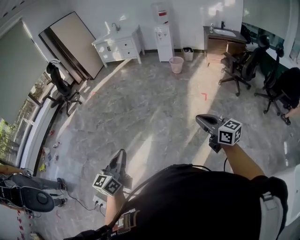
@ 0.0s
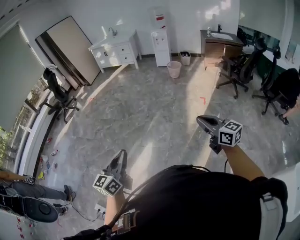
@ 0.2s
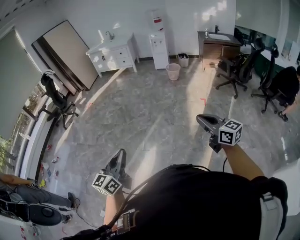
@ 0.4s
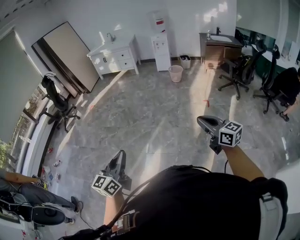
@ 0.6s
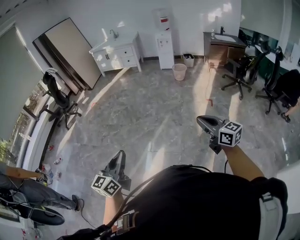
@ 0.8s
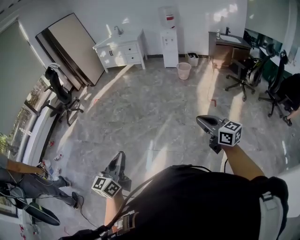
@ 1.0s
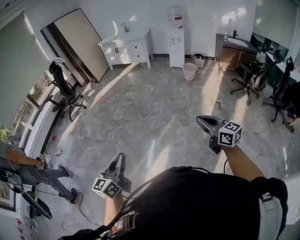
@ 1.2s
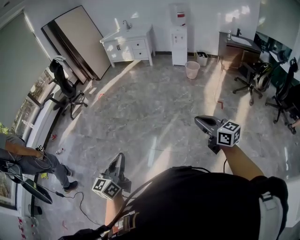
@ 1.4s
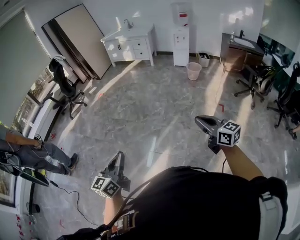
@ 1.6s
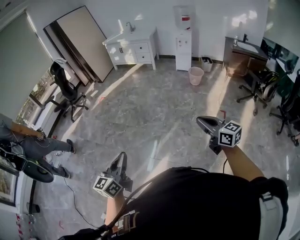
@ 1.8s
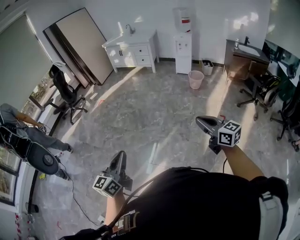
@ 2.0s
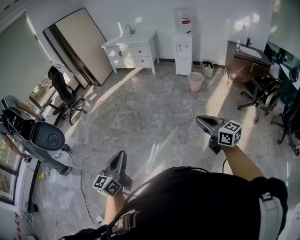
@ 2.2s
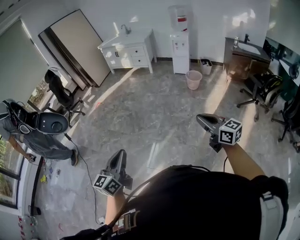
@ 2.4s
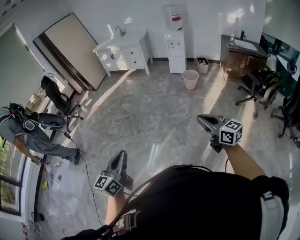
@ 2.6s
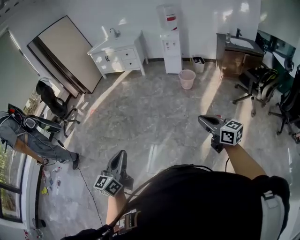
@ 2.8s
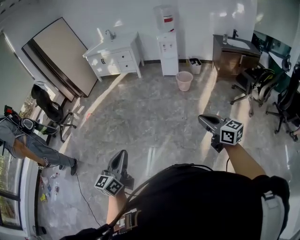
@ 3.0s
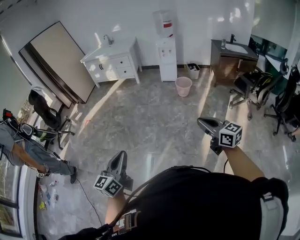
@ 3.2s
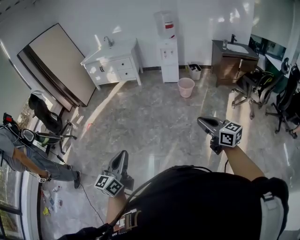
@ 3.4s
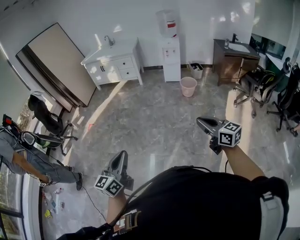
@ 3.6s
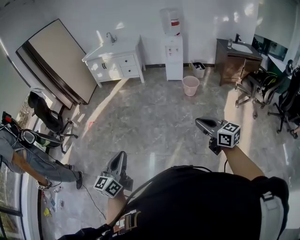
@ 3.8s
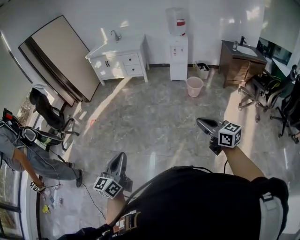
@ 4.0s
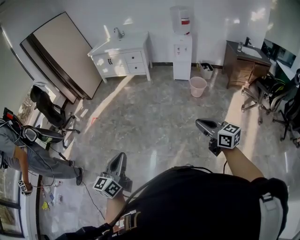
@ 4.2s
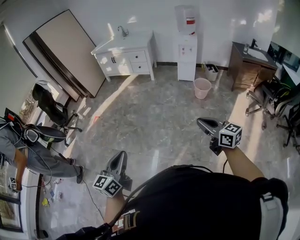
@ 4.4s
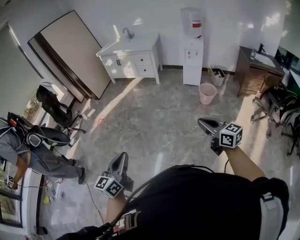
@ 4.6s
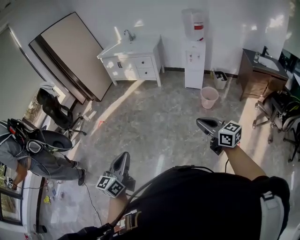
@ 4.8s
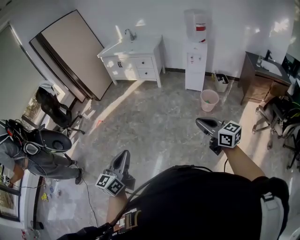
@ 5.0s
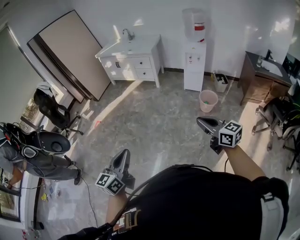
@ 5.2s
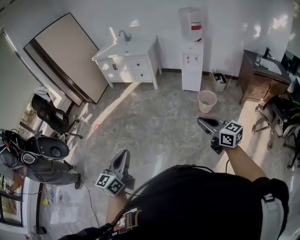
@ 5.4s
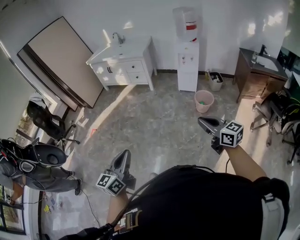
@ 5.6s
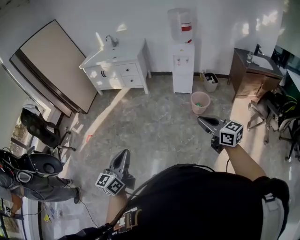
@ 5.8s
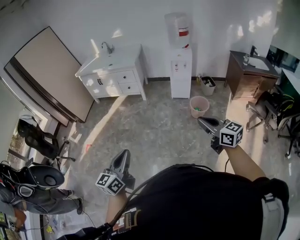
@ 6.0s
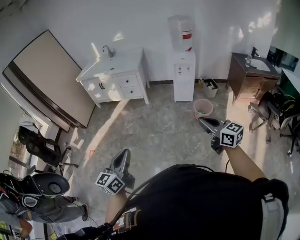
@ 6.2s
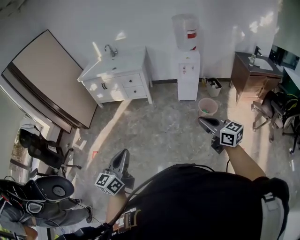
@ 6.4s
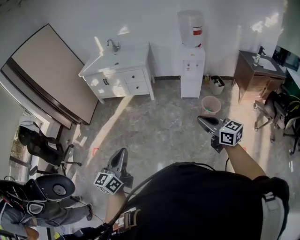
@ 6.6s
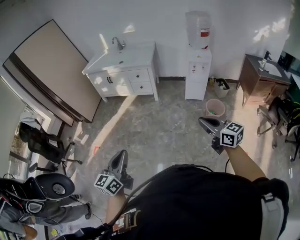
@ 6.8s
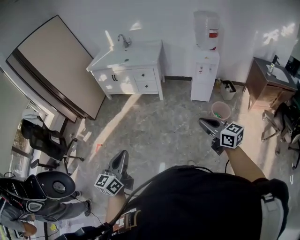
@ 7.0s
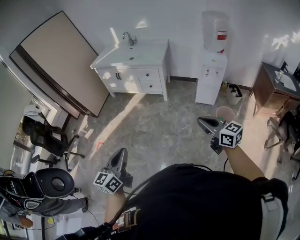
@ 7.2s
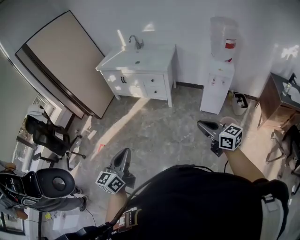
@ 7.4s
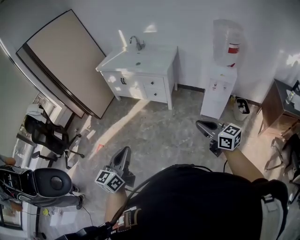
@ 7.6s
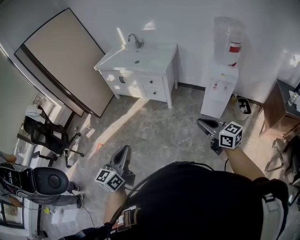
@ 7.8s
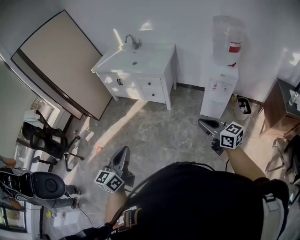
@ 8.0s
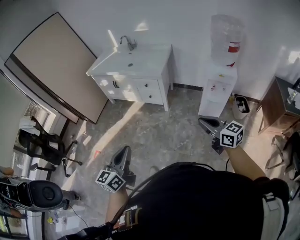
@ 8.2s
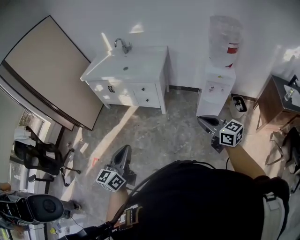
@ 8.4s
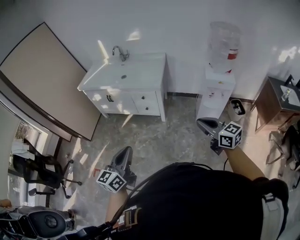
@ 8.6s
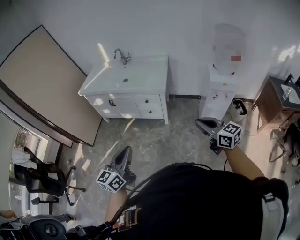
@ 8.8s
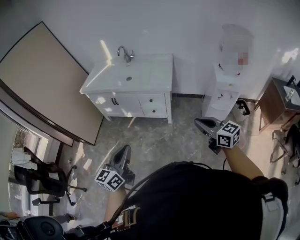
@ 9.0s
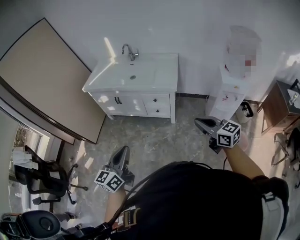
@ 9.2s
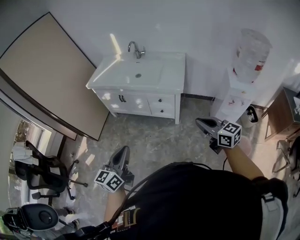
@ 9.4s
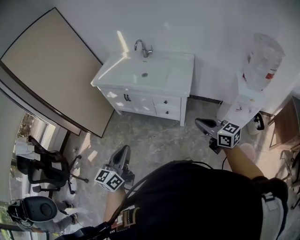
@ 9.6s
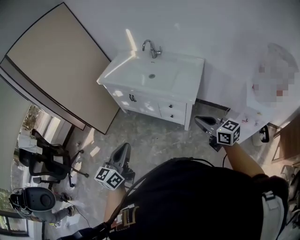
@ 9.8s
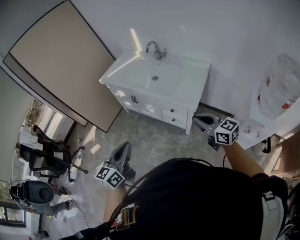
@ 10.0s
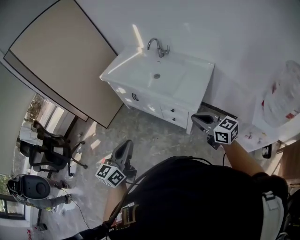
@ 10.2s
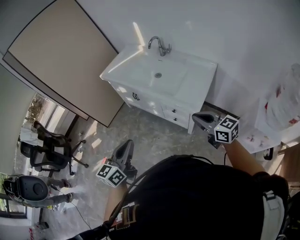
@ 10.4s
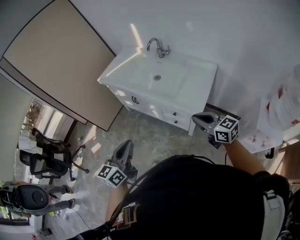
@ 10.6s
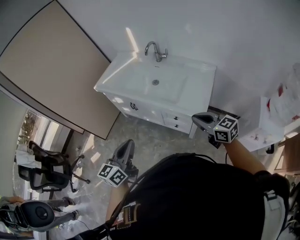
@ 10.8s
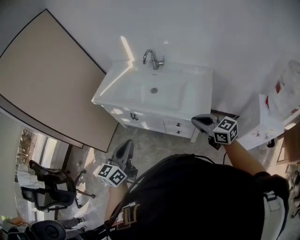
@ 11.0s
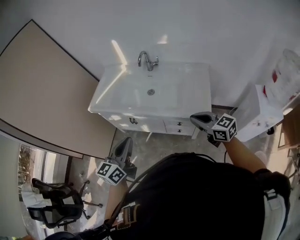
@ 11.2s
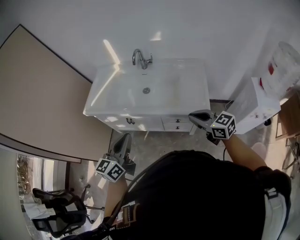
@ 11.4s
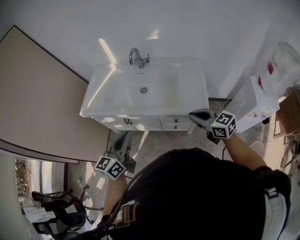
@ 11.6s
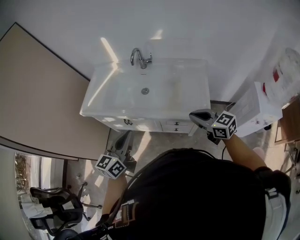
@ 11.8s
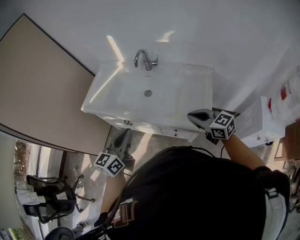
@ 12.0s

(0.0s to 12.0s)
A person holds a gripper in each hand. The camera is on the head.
0.0s - 1.6s: The grippers both shift forward and to the left by some 35 cm.
1.6s - 3.0s: Both grippers travel together forward and to the right, roughly 35 cm.
3.0s - 4.4s: The grippers both shift forward and to the left by approximately 30 cm.
4.4s - 6.0s: Both grippers move forward and to the right, some 40 cm.
6.0s - 7.6s: Both grippers travel together forward, some 40 cm.
7.6s - 9.0s: Both grippers move forward, about 35 cm.
9.0s - 10.4s: The right gripper travels forward by about 40 cm, and turns by about 30 degrees. The left gripper travels forward and to the right by approximately 30 cm, and changes its angle by about 20 degrees.
10.4s - 12.0s: Both grippers move forward, about 30 cm.

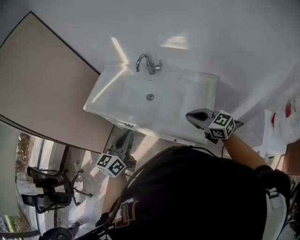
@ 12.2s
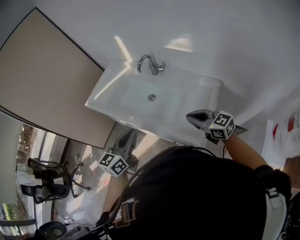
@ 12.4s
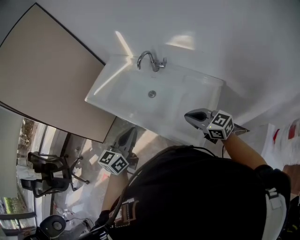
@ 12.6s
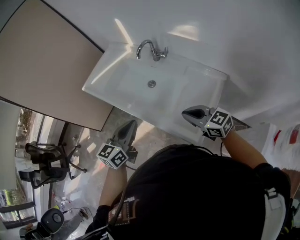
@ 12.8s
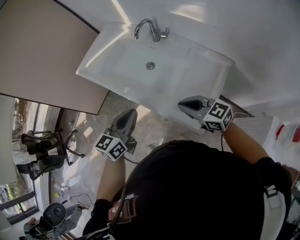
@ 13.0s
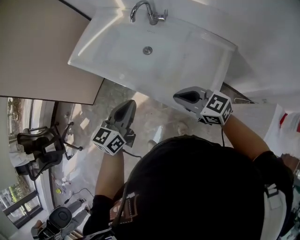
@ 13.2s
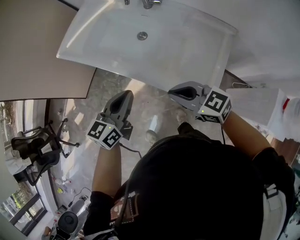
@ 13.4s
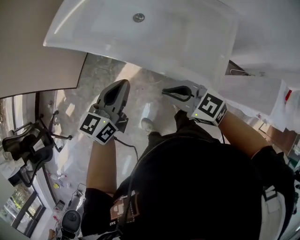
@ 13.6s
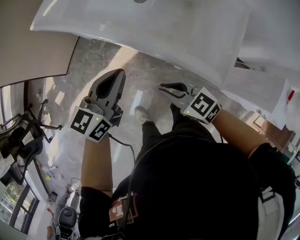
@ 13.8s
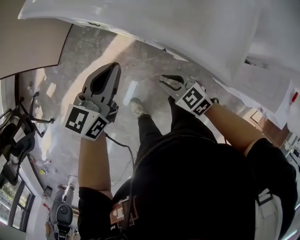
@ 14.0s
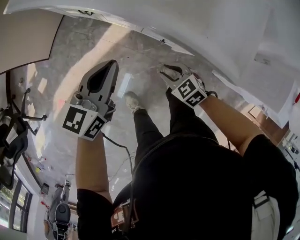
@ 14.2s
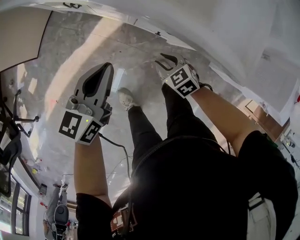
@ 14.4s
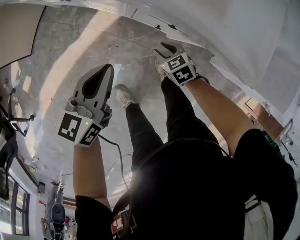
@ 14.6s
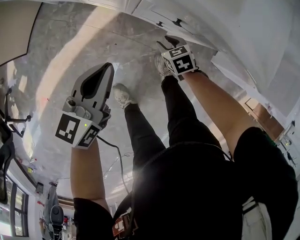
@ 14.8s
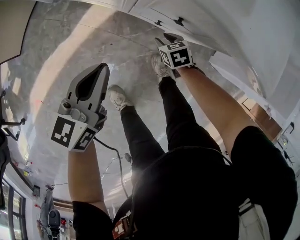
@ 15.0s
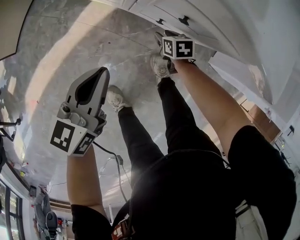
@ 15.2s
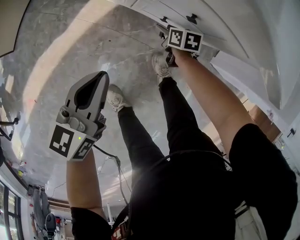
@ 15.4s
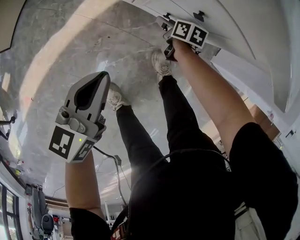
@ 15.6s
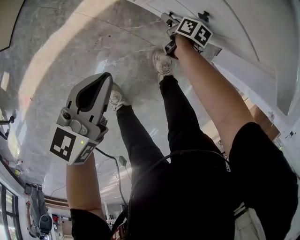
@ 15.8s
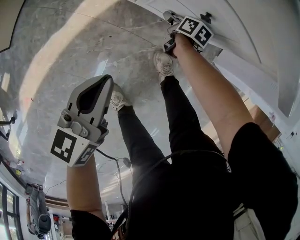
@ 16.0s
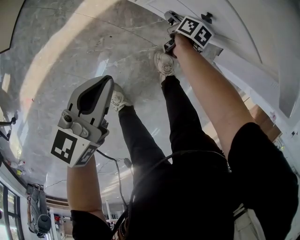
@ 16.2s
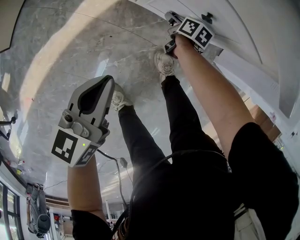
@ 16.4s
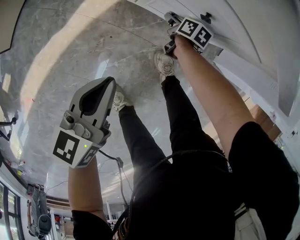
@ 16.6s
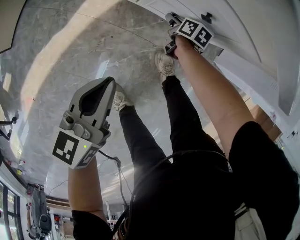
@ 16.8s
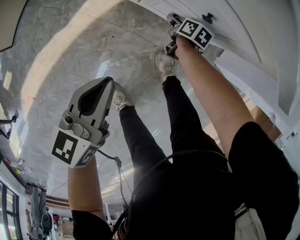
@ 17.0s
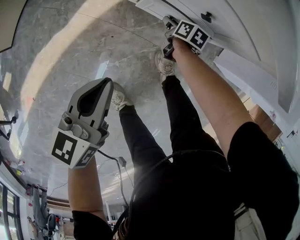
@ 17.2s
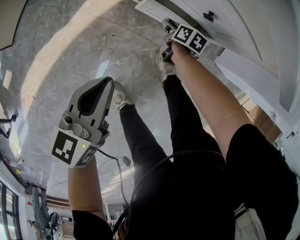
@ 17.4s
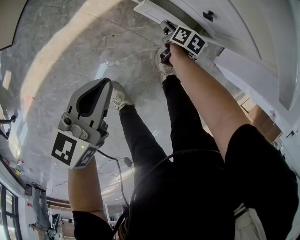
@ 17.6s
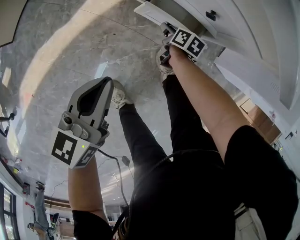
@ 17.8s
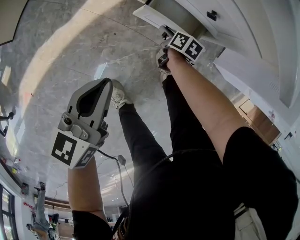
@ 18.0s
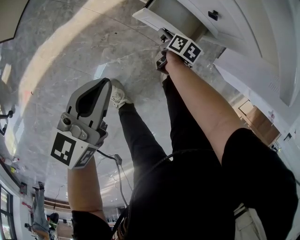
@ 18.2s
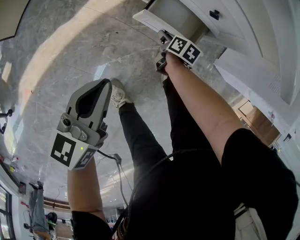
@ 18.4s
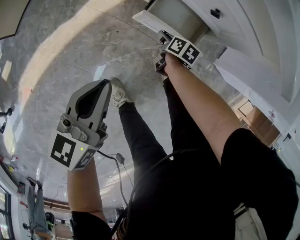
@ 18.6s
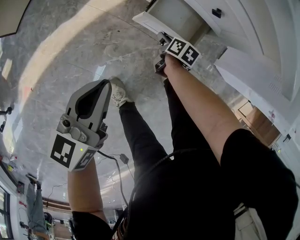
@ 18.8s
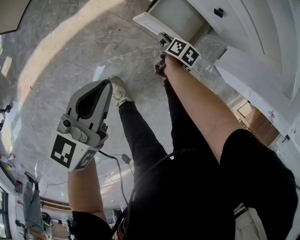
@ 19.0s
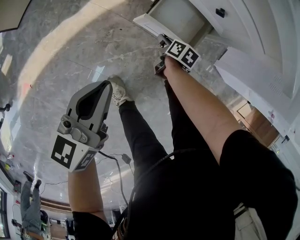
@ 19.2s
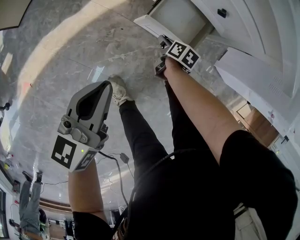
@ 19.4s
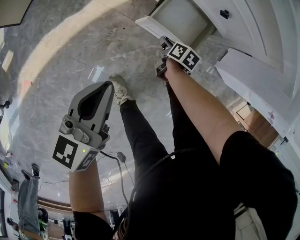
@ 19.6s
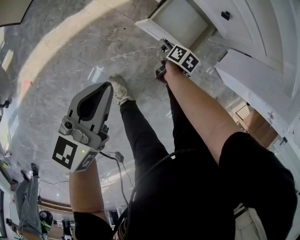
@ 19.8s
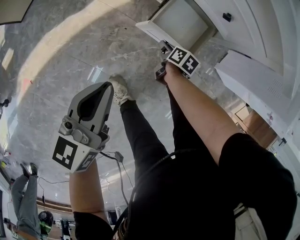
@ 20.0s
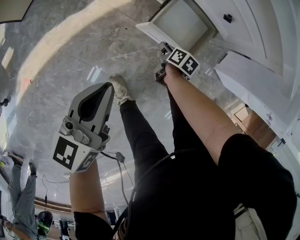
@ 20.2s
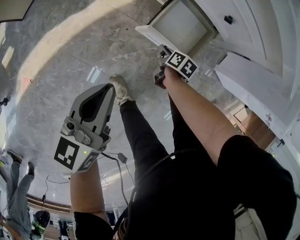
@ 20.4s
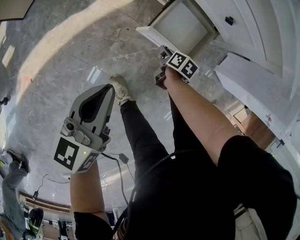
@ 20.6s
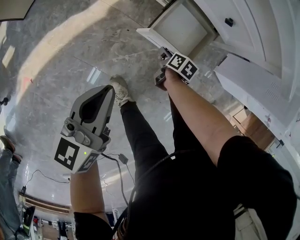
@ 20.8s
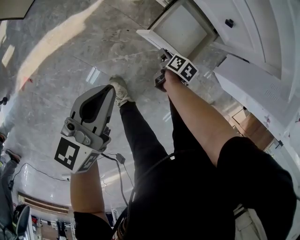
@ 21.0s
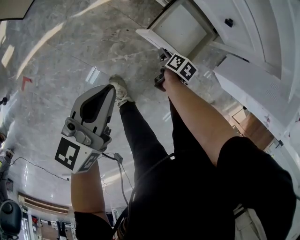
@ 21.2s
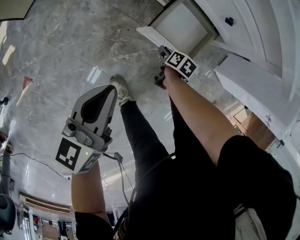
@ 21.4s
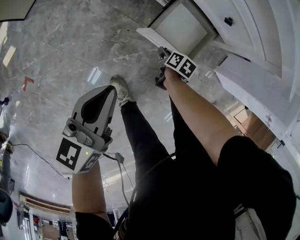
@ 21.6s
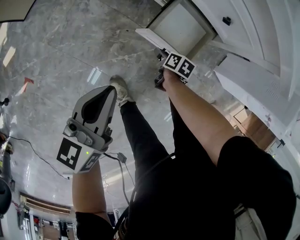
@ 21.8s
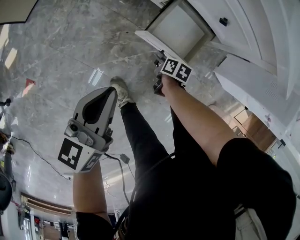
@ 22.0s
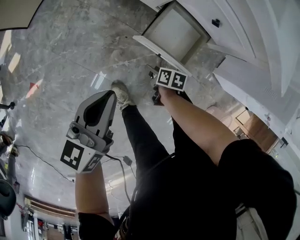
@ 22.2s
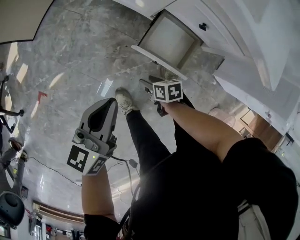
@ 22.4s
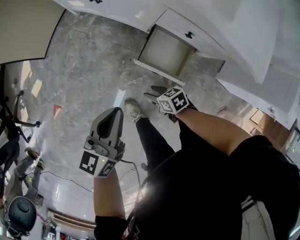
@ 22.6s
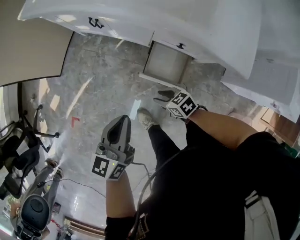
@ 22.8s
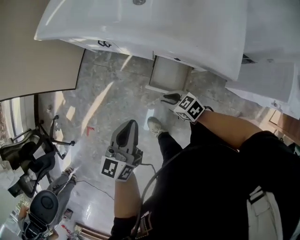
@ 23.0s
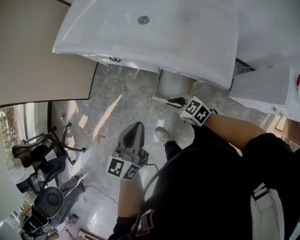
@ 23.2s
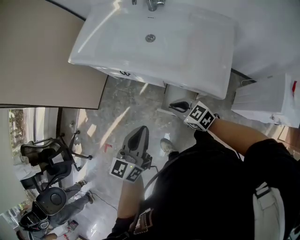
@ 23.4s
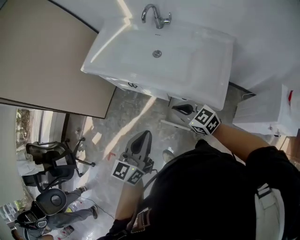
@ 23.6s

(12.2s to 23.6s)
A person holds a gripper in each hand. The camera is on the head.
12.2s - 13.6s: The left gripper shifts approximately 15 cm downward. Meanwhile the right gripper goes some 25 cm downward and to the left.
13.6s - 15.0s: The left gripper moves downward, some 35 cm, while the right gripper travels downward by approximately 60 cm, angles its fingers downward, by approximately 40 degrees, and opens.
15.0s - 16.4s: The left gripper travels downward by some 5 cm, while the right gripper goes roughly 10 cm downward and forward, and twists about 50 degrees clockwise, seen from behind.
16.4s - 17.8s: The right gripper goes about 5 cm backward.
17.8s - 19.4s: Both grippers travel together backward, approximately 10 cm.
19.4s - 20.8s: The grippers move only a little.
20.8s - 22.2s: The right gripper travels backward by roughly 5 cm.
22.2s - 23.6s: The left gripper goes approximately 50 cm upward and to the right. Meanwhile the right gripper moves upward, some 60 cm, twists about 60 degrees counterclockwise, seen from behind, and closes up.
